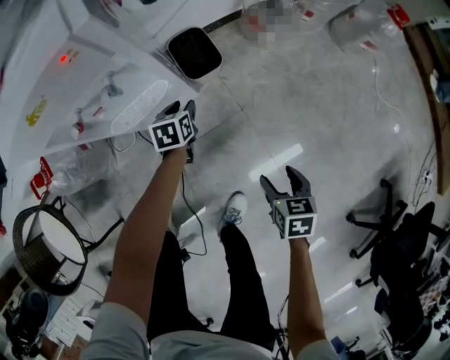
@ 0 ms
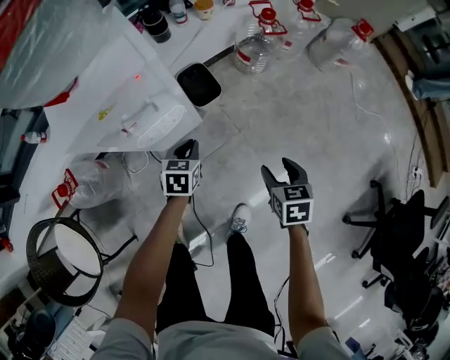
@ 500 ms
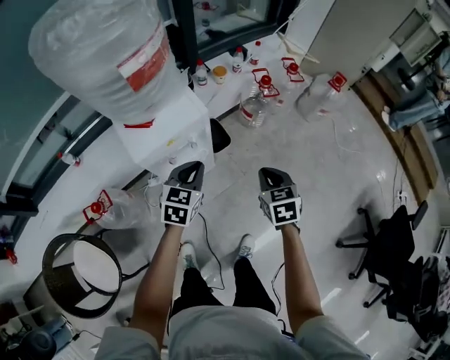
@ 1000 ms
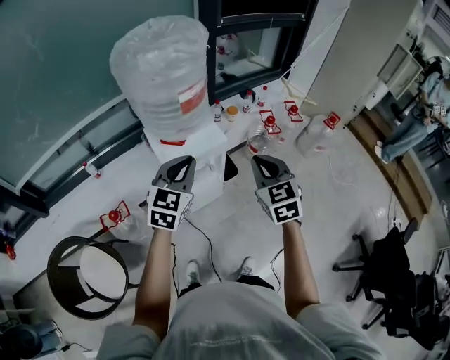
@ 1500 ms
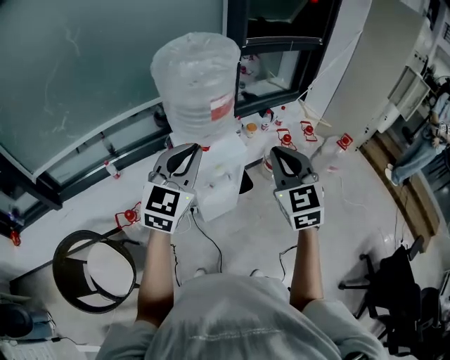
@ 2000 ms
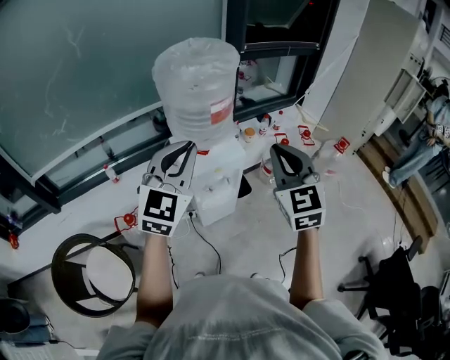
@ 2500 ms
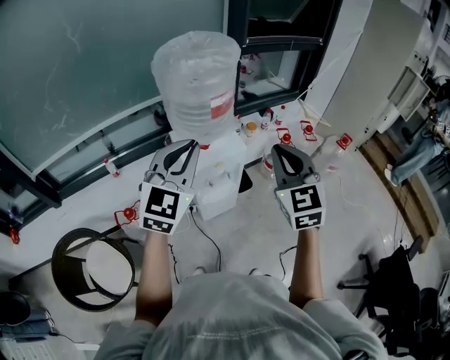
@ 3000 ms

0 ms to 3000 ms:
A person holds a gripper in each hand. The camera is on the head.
0 ms to 1500 ms: The left gripper moves upward, roughly 70 cm, tips its fingers upward by roughly 40 degrees, and closes. The right gripper shifts about 60 cm upward and to the left, tips its fingers upward by about 40 degrees, and closes its fingers.
1500 ms to 3000 ms: The right gripper travels upward by about 15 cm; the left gripper goes roughly 15 cm upward and backward.

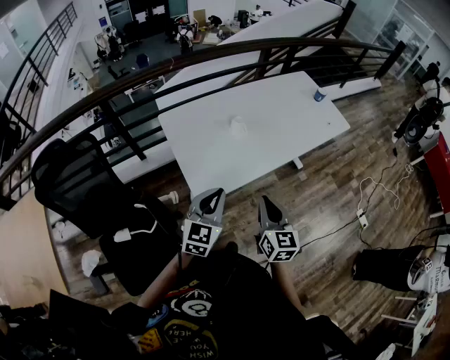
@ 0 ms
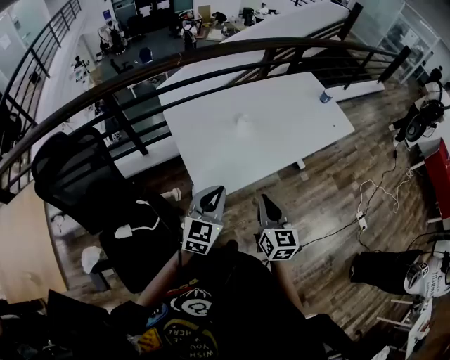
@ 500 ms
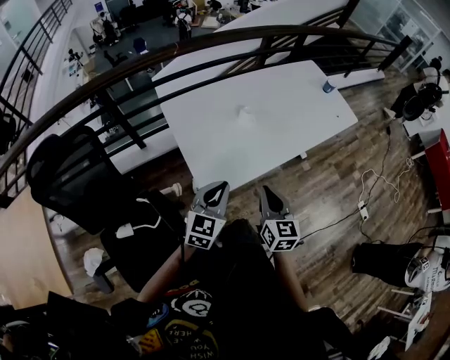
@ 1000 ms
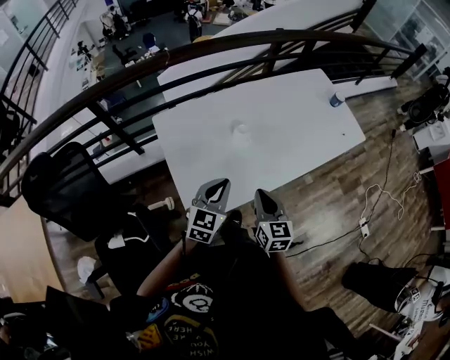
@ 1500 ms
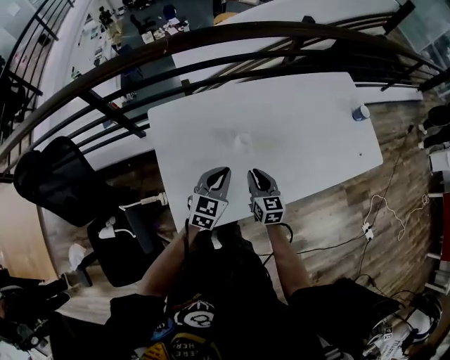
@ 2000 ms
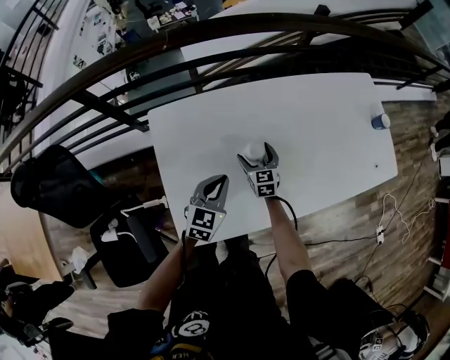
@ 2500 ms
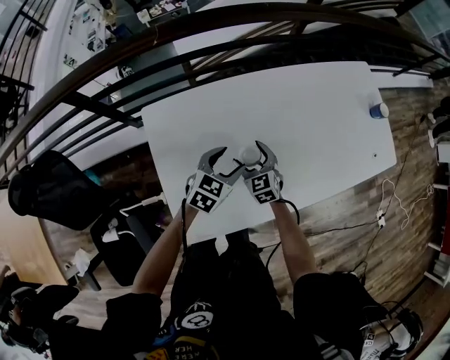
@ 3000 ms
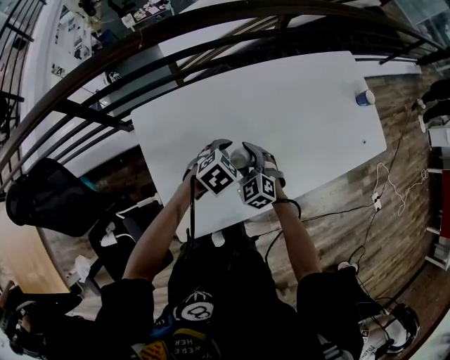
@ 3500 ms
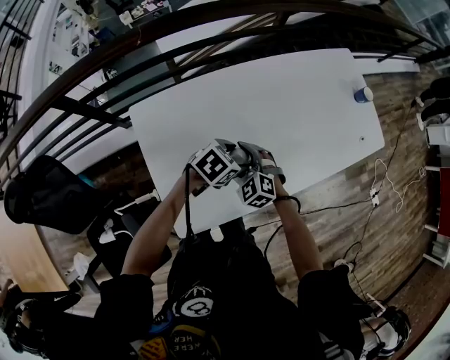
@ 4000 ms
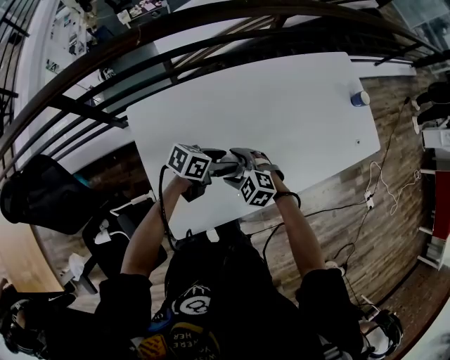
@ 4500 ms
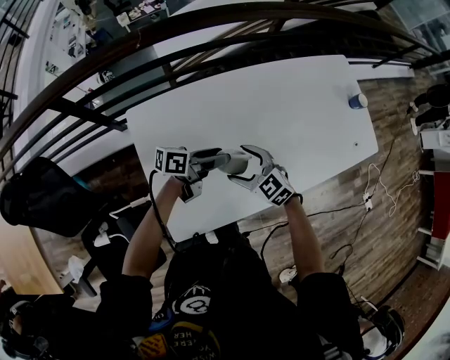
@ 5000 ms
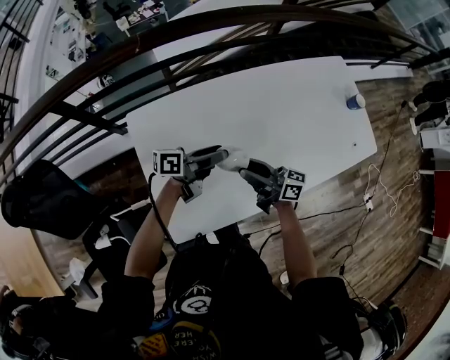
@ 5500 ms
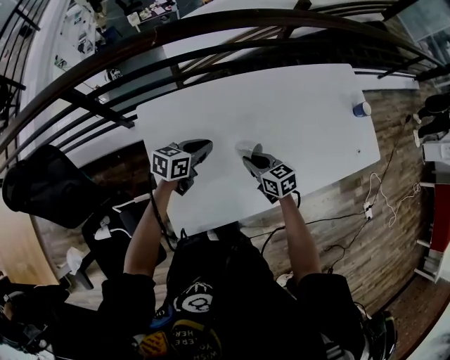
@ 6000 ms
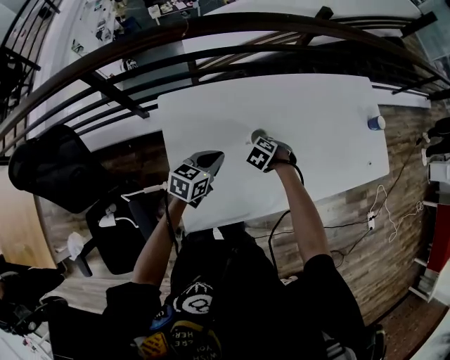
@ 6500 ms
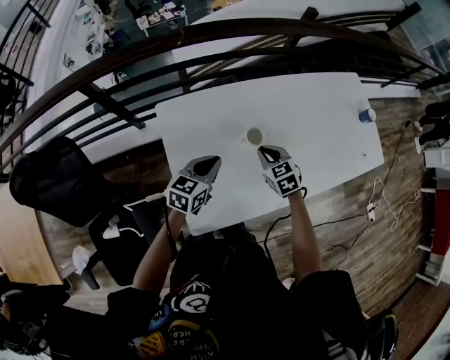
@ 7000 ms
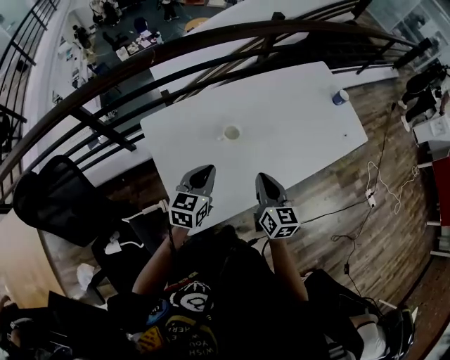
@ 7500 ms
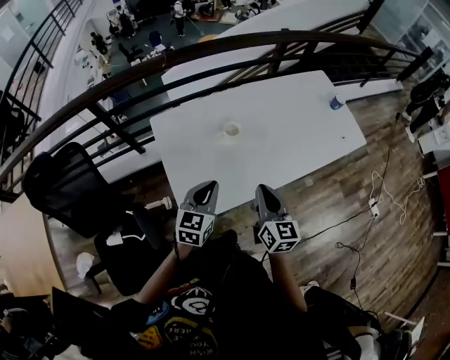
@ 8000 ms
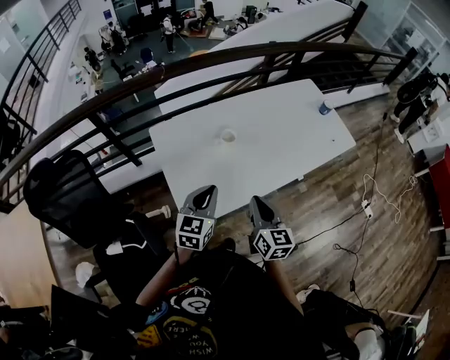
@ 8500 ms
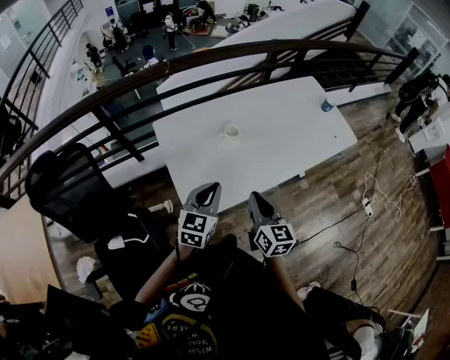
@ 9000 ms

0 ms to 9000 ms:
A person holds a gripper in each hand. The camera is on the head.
0 ms to 2000 ms: Both grippers move forward and downward, about 40 cm. The right gripper swivels approximately 20 degrees.
2000 ms to 4500 ms: The right gripper reaches roughly 10 cm downward, then returns, rotates approximately 60 degrees, and opens; the left gripper shifts by some 10 cm, turns by about 60 degrees, and opens up.
4500 ms to 7000 ms: The right gripper moves up and down over roughly 20 cm, changing direction 2 times, turns by roughly 30 degrees, and closes up. Meanwhile the left gripper goes up and down, some 5 cm each way, reversing 2 times, turns by some 40 degrees, and closes.
7000 ms to 9000 ms: Both grippers move backward and upward, approximately 30 cm. The right gripper tilts its fingers about 30 degrees upward.

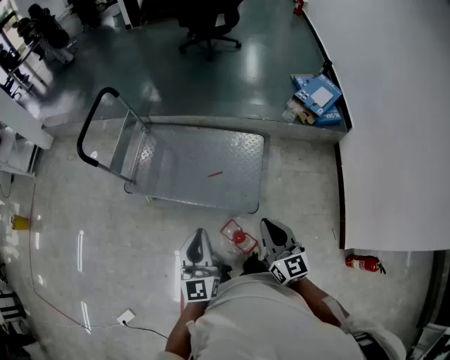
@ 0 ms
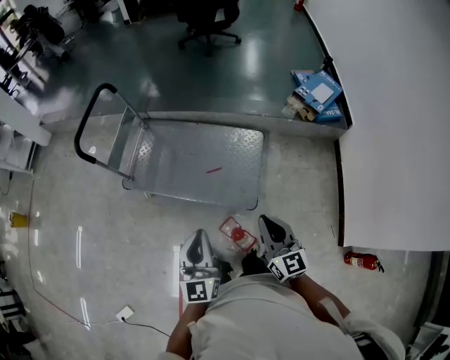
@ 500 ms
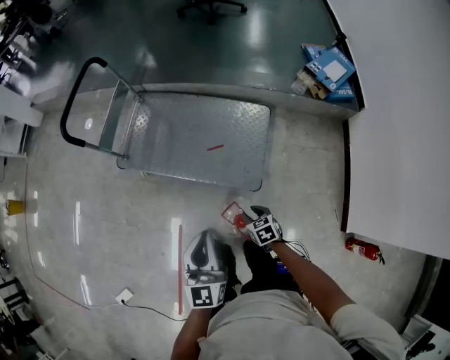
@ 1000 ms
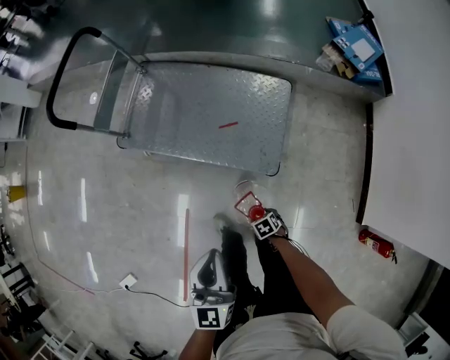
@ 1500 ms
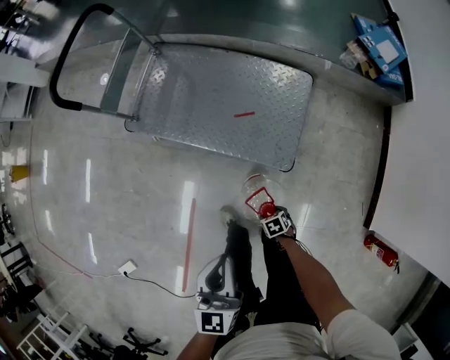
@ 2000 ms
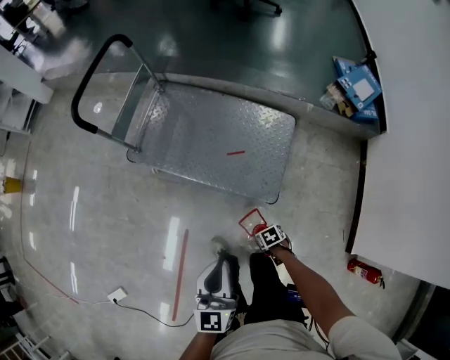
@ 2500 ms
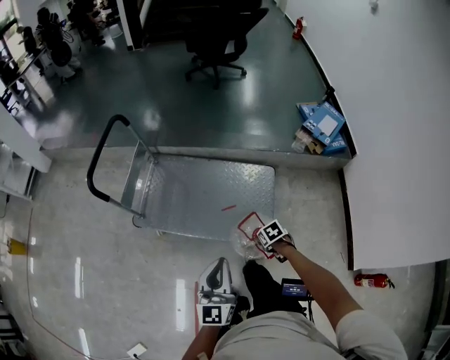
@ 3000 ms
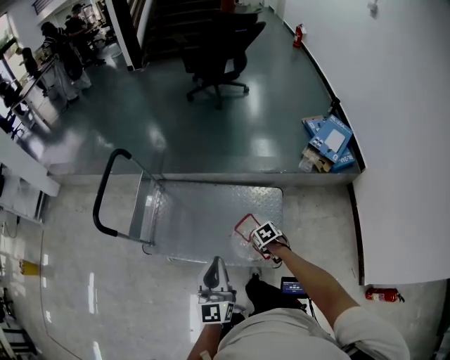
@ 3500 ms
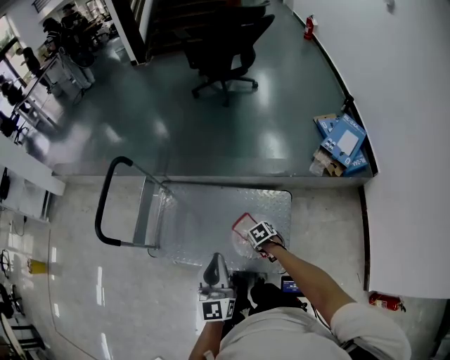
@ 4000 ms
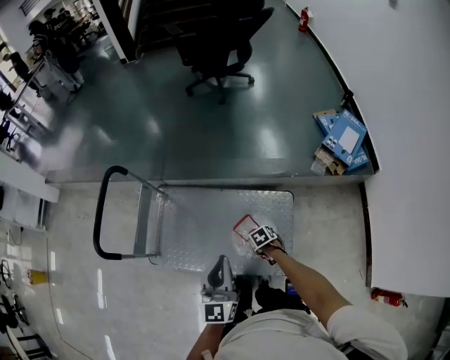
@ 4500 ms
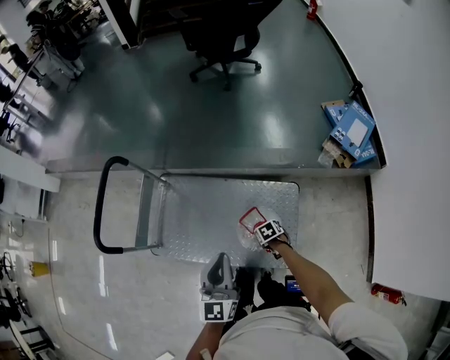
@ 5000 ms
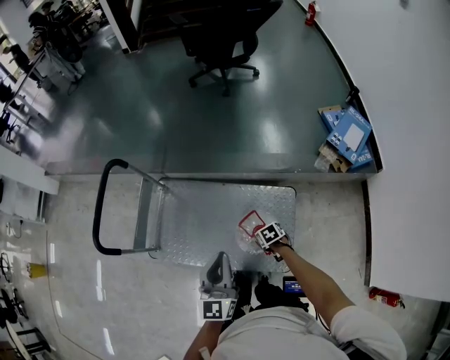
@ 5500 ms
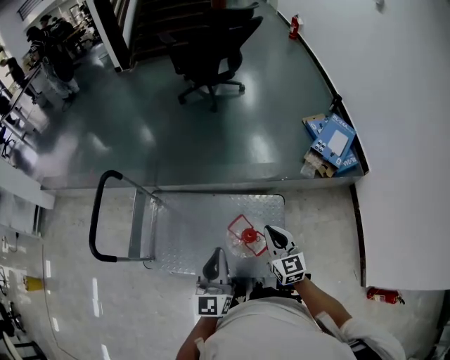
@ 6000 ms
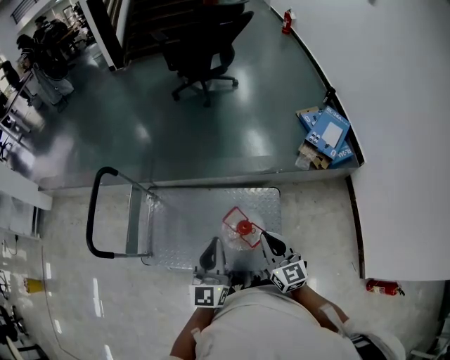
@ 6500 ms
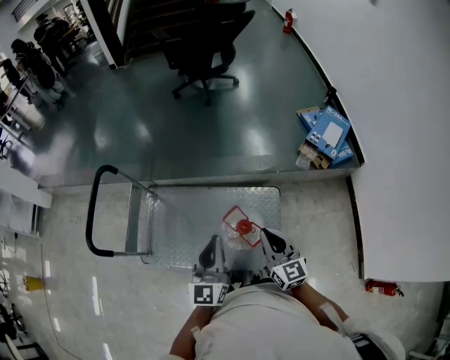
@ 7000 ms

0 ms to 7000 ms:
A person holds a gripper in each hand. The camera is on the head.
0 ms to 2000 ms: The left gripper shifts approximately 15 cm downward; the right gripper travels downward by some 60 cm, points its fingers approximately 70 degrees further downward, and opens.
2000 ms to 3500 ms: The left gripper moves some 30 cm, and turns by some 20 degrees. Meanwhile the right gripper changes place by approximately 50 cm.
3500 ms to 5000 ms: The right gripper moves approximately 15 cm, while the left gripper changes place by approximately 20 cm.
5000 ms to 7000 ms: The right gripper is displaced upward by some 35 cm, tips its fingers upward by roughly 60 degrees, and closes. The left gripper shifts some 5 cm upward.

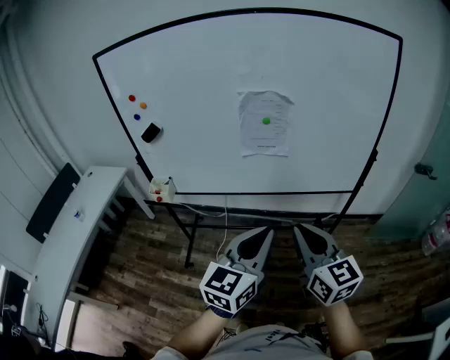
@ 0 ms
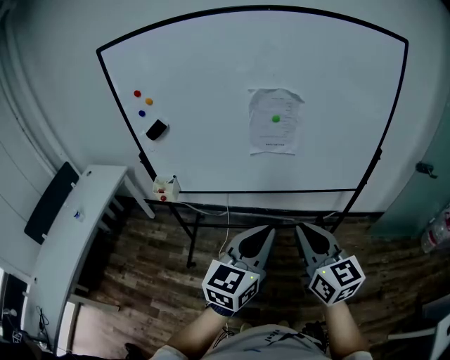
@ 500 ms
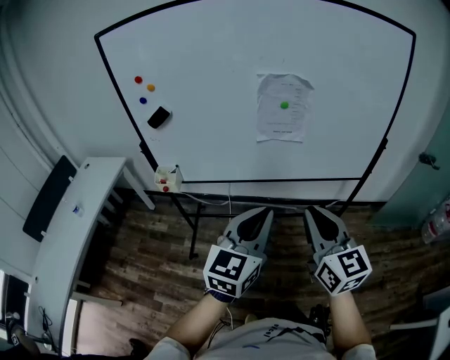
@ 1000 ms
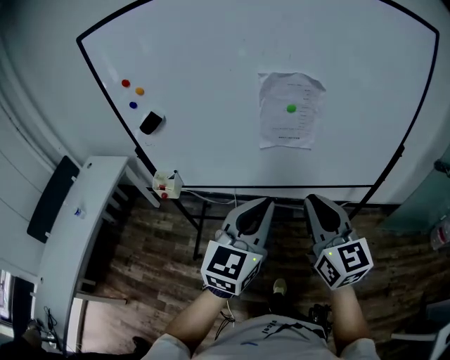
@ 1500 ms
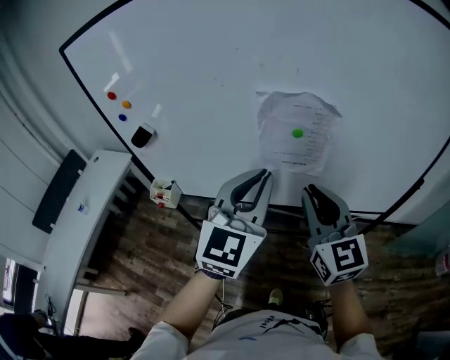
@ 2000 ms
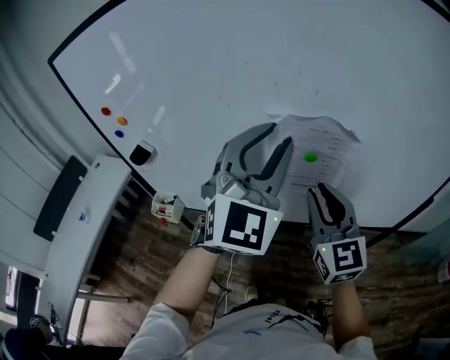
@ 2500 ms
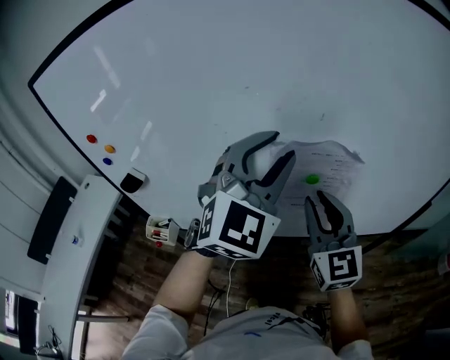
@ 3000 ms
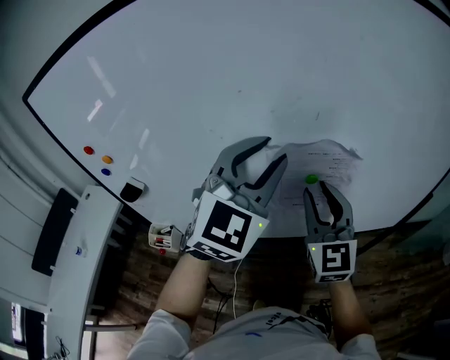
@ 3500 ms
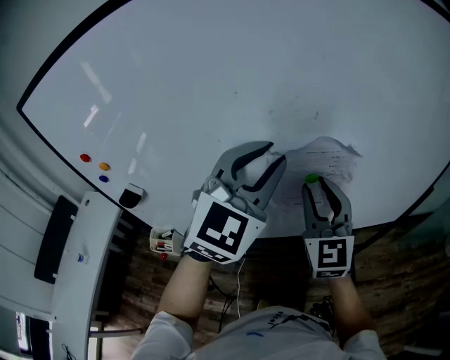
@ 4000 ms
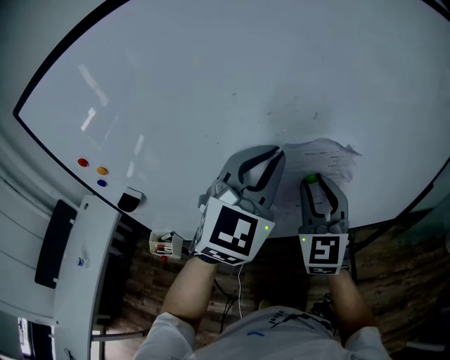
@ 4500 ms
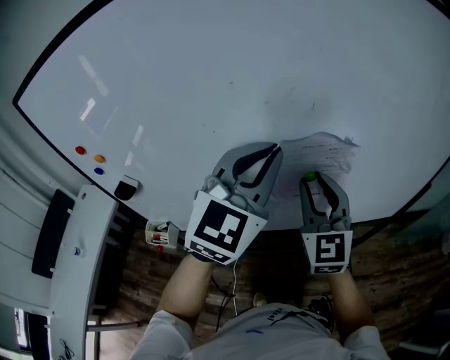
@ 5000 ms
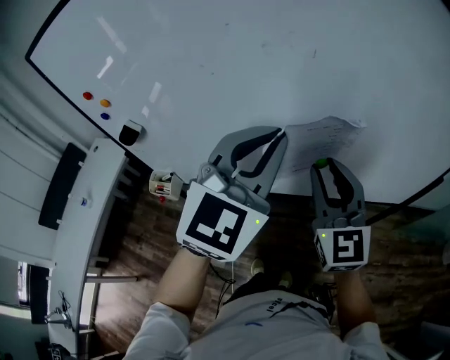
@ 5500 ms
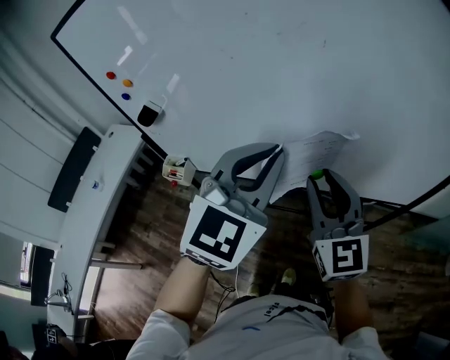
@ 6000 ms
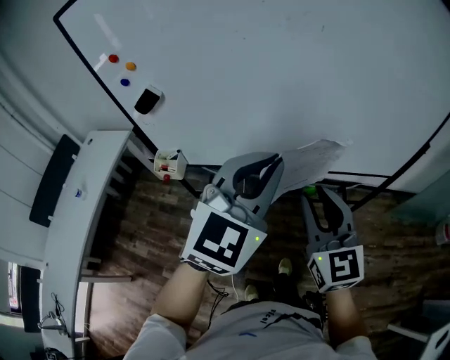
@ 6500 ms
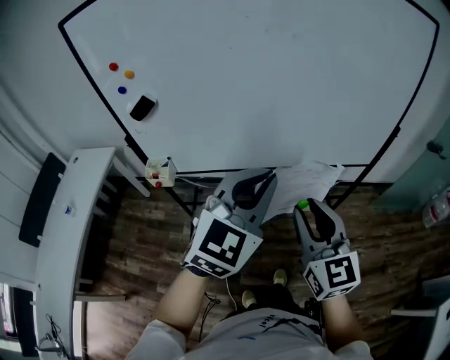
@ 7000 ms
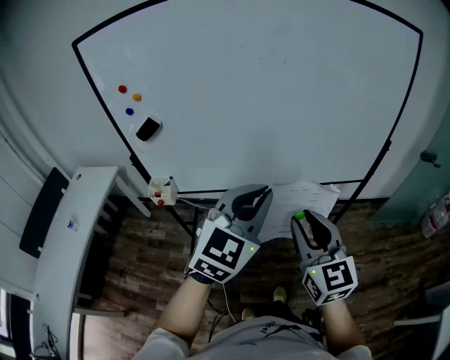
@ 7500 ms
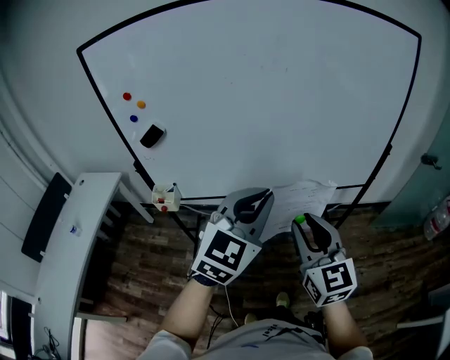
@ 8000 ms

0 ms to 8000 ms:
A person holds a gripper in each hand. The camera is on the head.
0 ms to 2000 ms: The two grippers go roughly 25 cm forward. The left gripper turns by about 30 degrees.
2000 ms to 4000 ms: The right gripper heads forward, covering roughly 15 cm, changes its angle by approximately 20 degrees, and opens. The left gripper is displaced forward and upward by some 15 cm, changes its angle by some 20 degrees, and opens up.
4000 ms to 6000 ms: The right gripper shifts approximately 10 cm backward, and rotates approximately 20 degrees; the left gripper travels backward and downward by about 15 cm, and closes its fingers.
6000 ms to 8000 ms: Both grippers move backward, about 20 cm.
